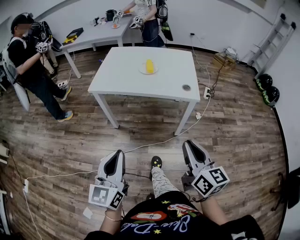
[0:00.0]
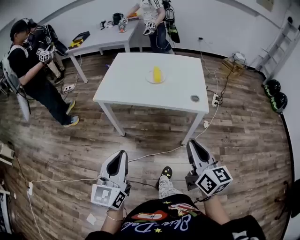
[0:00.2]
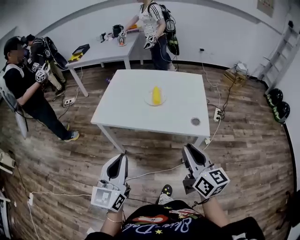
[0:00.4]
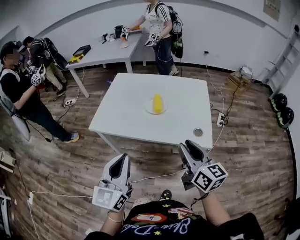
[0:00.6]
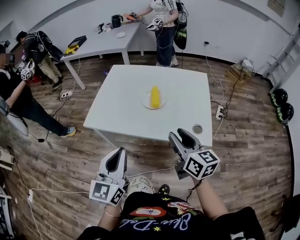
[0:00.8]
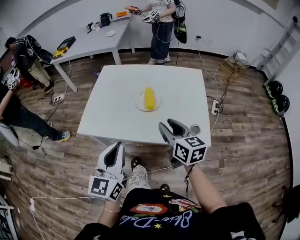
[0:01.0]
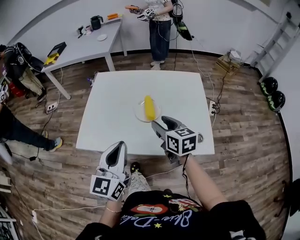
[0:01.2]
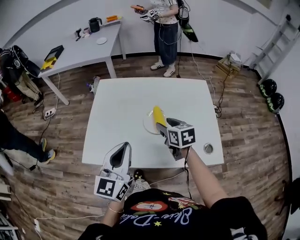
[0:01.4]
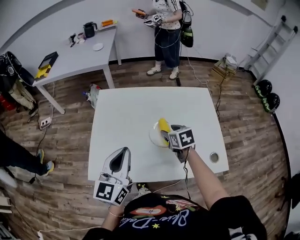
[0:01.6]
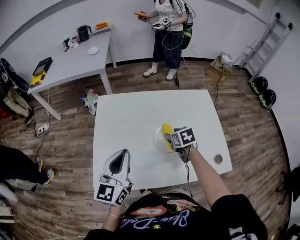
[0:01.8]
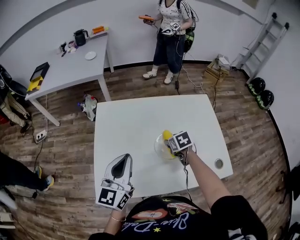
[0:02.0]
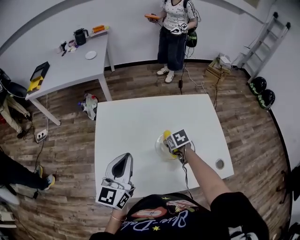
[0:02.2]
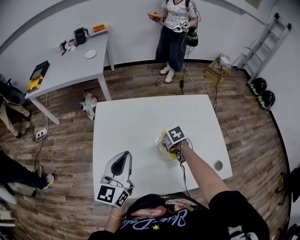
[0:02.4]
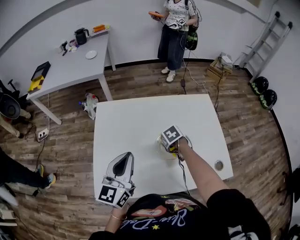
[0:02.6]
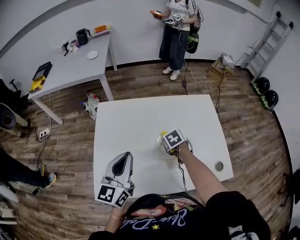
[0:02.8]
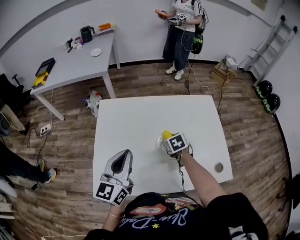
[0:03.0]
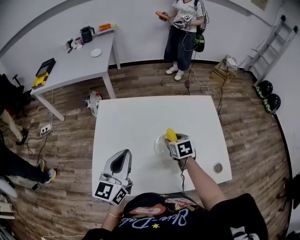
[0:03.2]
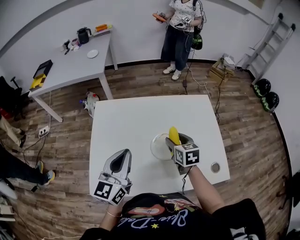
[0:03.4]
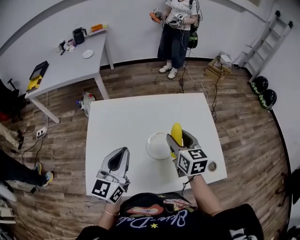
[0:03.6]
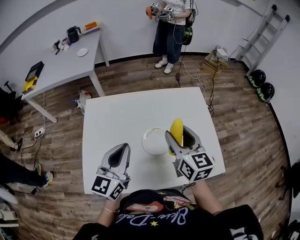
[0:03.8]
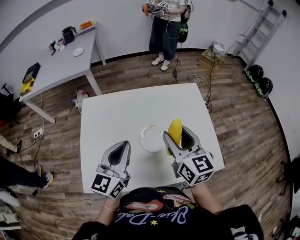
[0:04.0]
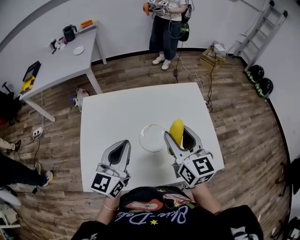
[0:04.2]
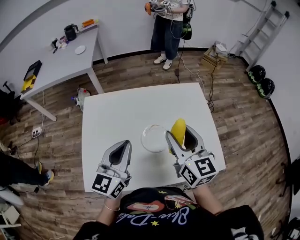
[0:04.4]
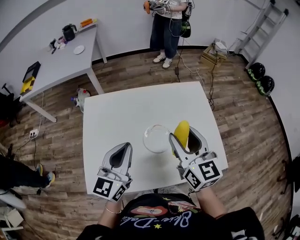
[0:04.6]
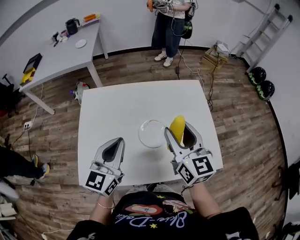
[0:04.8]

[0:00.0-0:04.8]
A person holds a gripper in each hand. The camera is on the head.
0:00.0 to 0:01.6: The pair of grippers is taken forward, approximately 60 cm. The right gripper tilts its fingers roughly 40 degrees downward, and opens up.
0:01.6 to 0:03.2: The left gripper shifts approximately 5 cm forward.
0:03.2 to 0:04.8: The left gripper goes roughly 5 cm to the right. The right gripper moves upward, approximately 20 cm, and angles its fingers upward, by approximately 40 degrees.

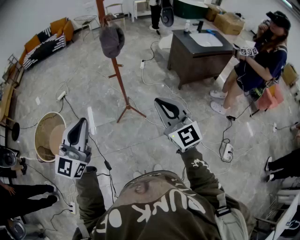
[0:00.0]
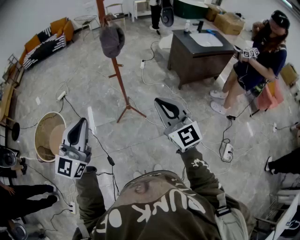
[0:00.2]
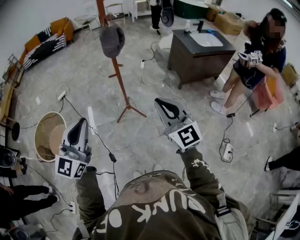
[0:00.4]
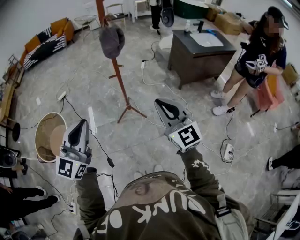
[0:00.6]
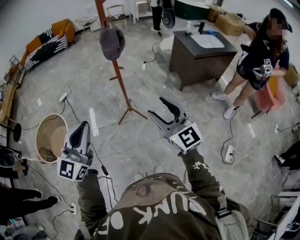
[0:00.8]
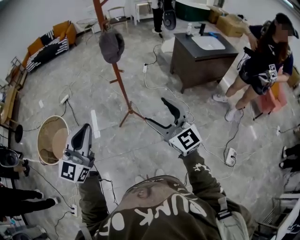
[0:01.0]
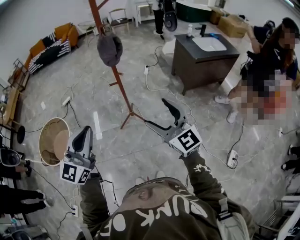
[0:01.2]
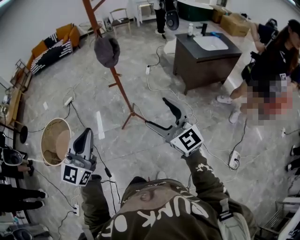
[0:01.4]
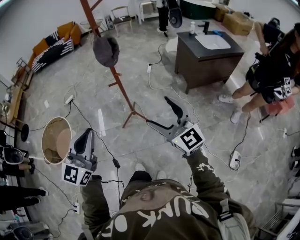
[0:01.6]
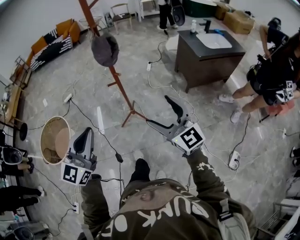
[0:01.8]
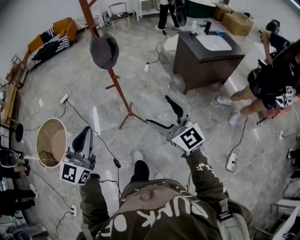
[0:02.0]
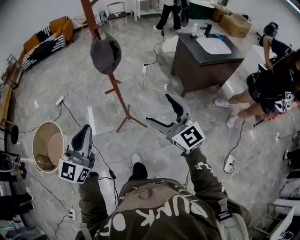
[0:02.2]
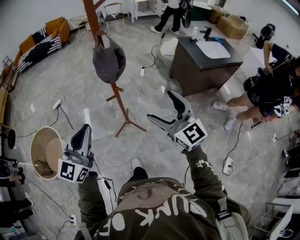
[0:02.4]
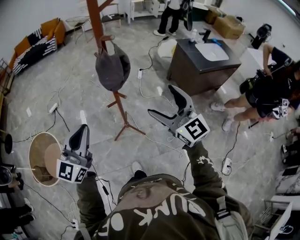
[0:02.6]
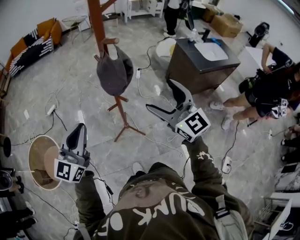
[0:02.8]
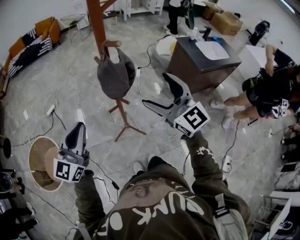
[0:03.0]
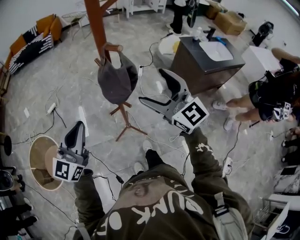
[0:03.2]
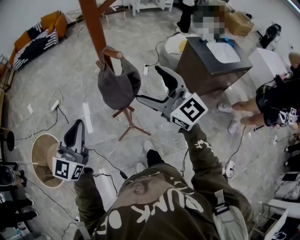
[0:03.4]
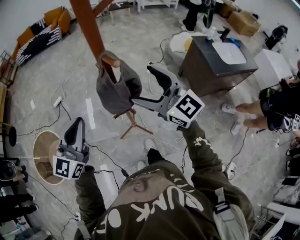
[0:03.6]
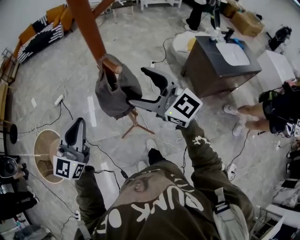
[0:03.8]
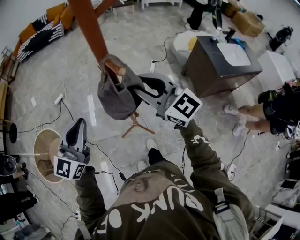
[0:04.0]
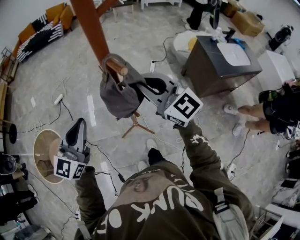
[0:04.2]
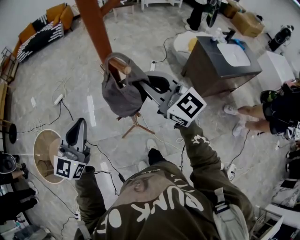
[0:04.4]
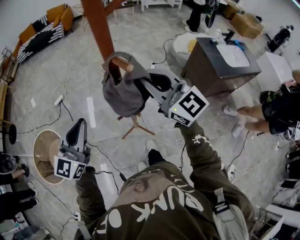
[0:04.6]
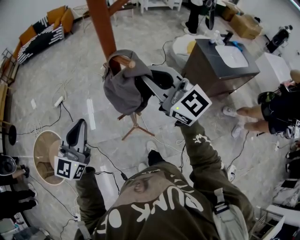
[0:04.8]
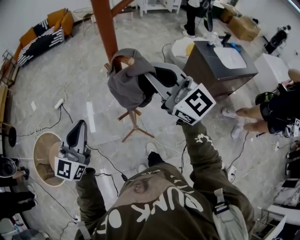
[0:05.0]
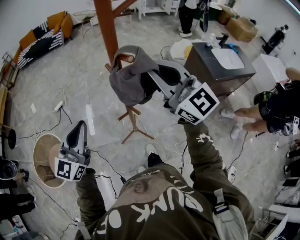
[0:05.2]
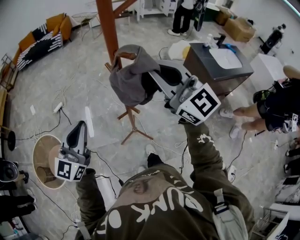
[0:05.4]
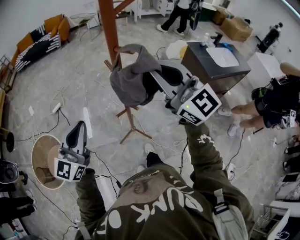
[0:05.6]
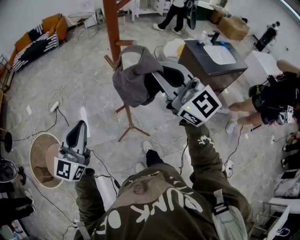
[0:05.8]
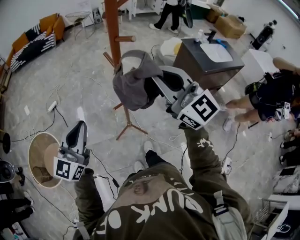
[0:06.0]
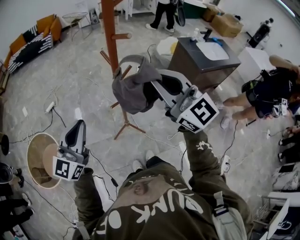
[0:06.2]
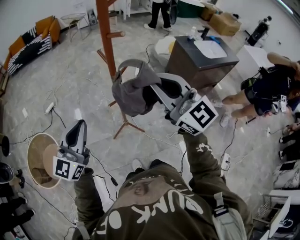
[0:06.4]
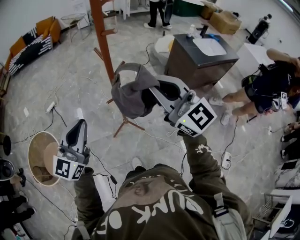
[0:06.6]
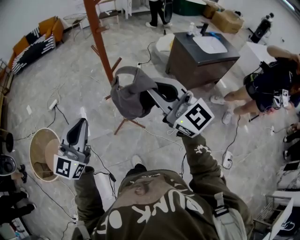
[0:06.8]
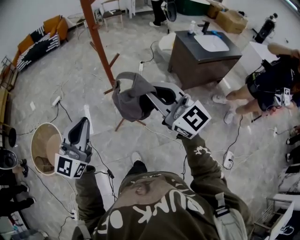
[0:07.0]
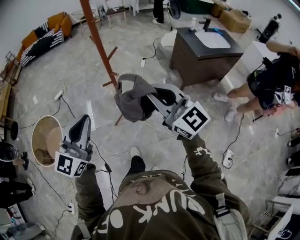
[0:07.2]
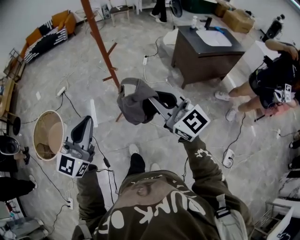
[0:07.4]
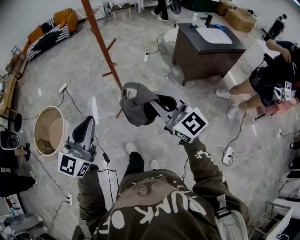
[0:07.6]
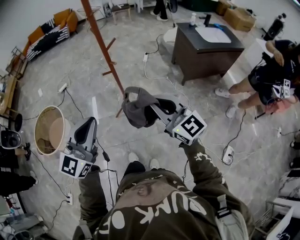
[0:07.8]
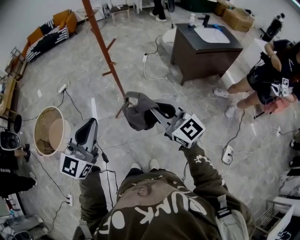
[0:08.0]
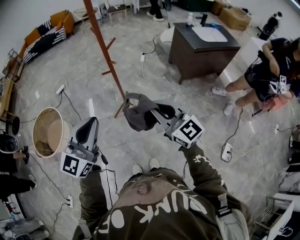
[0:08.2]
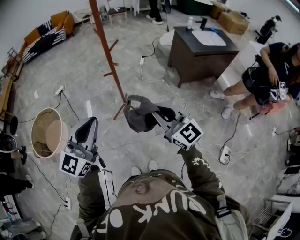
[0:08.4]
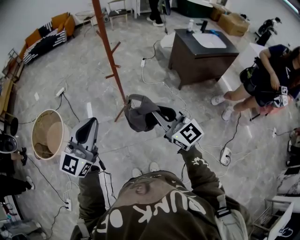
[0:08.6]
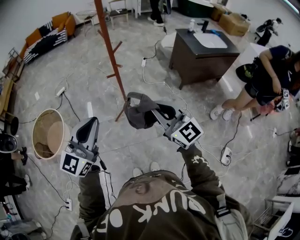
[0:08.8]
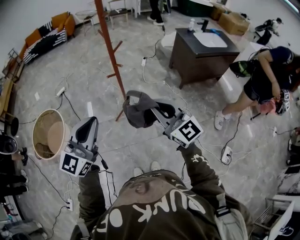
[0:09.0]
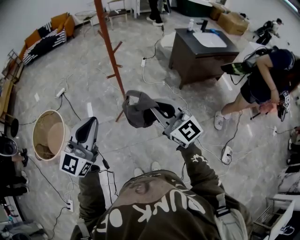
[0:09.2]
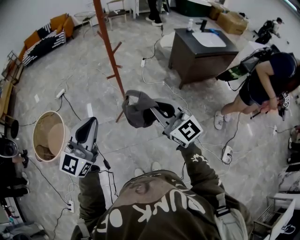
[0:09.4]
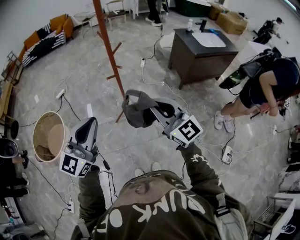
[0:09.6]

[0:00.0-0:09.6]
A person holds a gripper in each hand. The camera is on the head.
0:00.0 to 0:01.6: Both grippers travel together to the right, about 5 cm. The right gripper opens up.
0:01.6 to 0:03.2: Both grippers travel together forward, some 35 cm.
0:03.2 to 0:04.8: The right gripper travels forward by roughly 10 cm, and closes its fingers. The left gripper shifts roughly 5 cm forward.
0:04.8 to 0:06.4: The two grippers go some 15 cm backward.
0:06.4 to 0:08.0: The left gripper shifts some 30 cm backward and to the right; the right gripper is displaced backward and downward by roughly 30 cm.
0:08.0 to 0:09.6: The left gripper heads to the left, covering approximately 5 cm. Meanwhile the right gripper ends up some 5 cm from where it was.

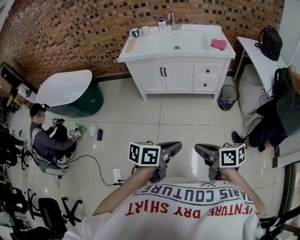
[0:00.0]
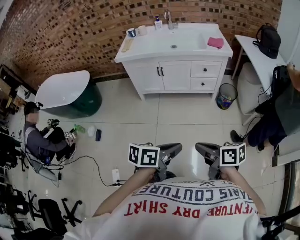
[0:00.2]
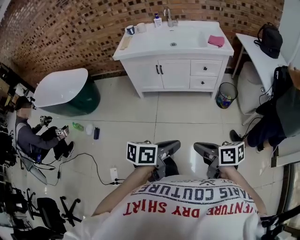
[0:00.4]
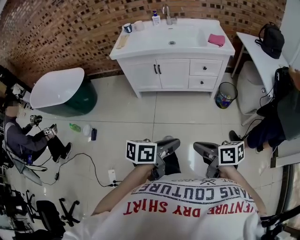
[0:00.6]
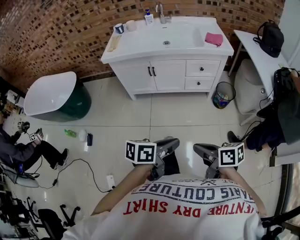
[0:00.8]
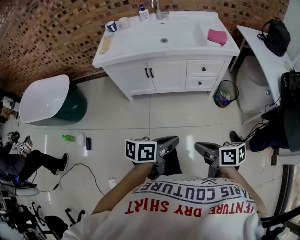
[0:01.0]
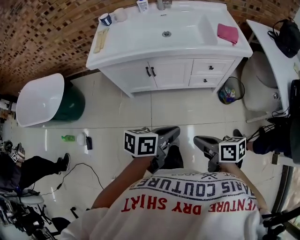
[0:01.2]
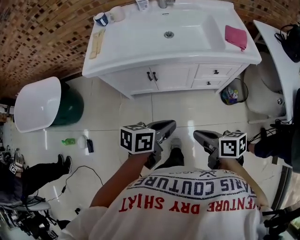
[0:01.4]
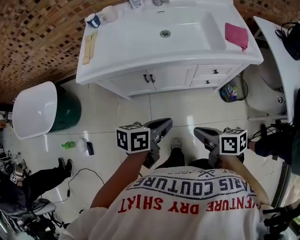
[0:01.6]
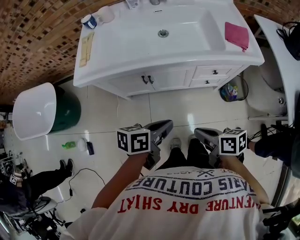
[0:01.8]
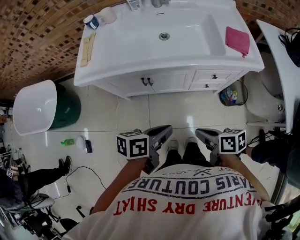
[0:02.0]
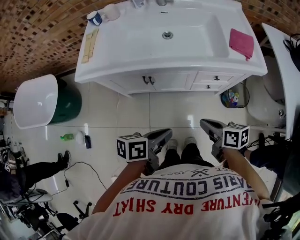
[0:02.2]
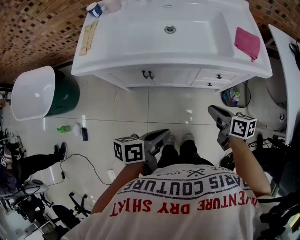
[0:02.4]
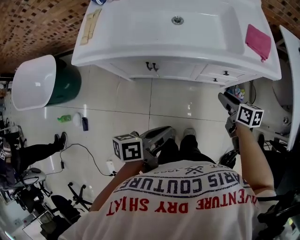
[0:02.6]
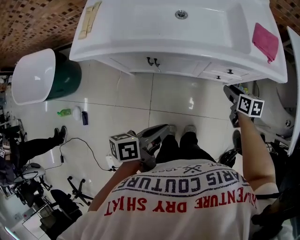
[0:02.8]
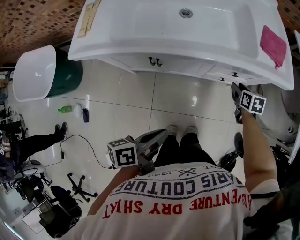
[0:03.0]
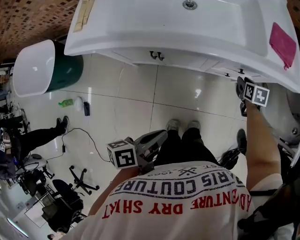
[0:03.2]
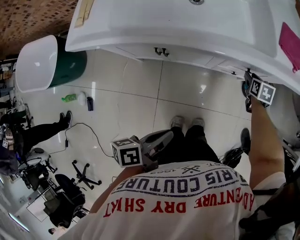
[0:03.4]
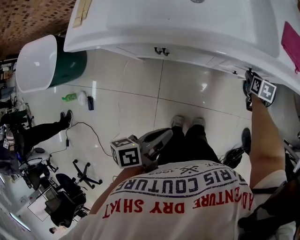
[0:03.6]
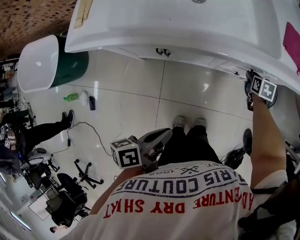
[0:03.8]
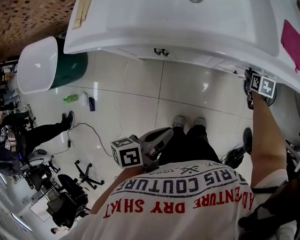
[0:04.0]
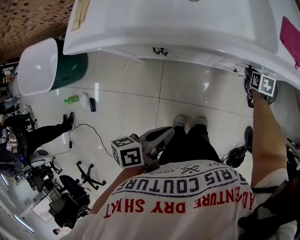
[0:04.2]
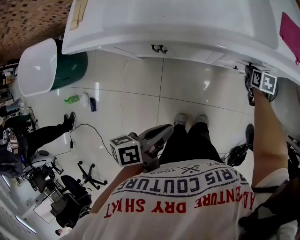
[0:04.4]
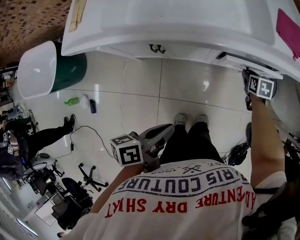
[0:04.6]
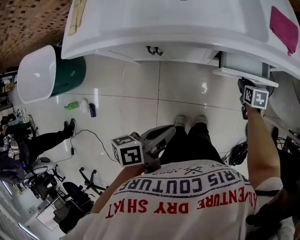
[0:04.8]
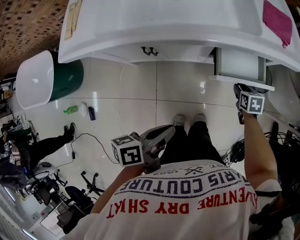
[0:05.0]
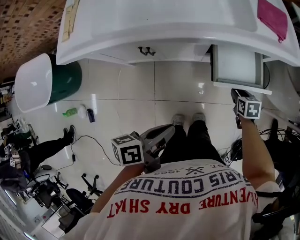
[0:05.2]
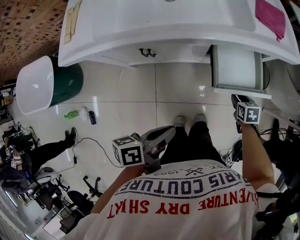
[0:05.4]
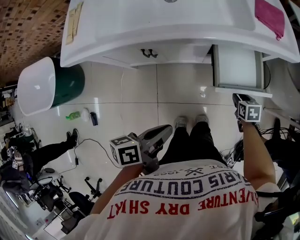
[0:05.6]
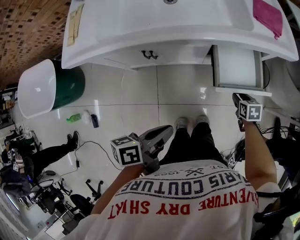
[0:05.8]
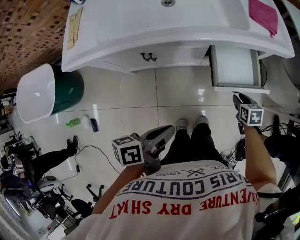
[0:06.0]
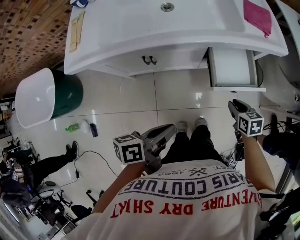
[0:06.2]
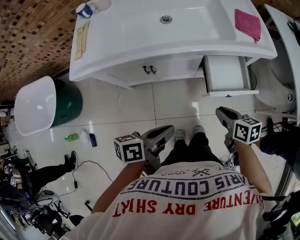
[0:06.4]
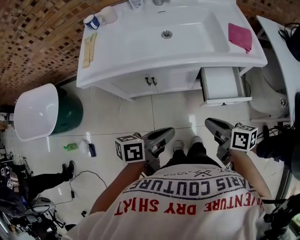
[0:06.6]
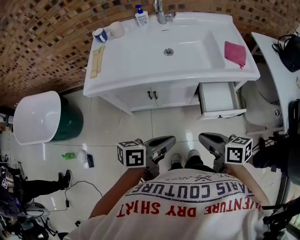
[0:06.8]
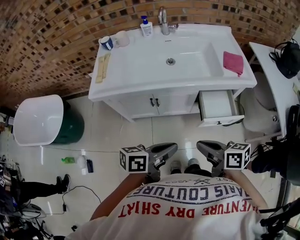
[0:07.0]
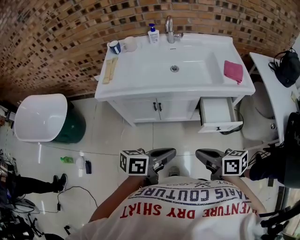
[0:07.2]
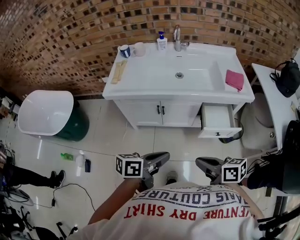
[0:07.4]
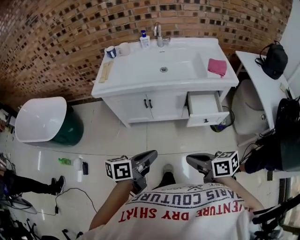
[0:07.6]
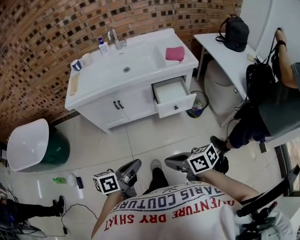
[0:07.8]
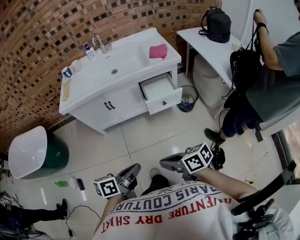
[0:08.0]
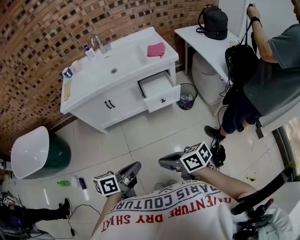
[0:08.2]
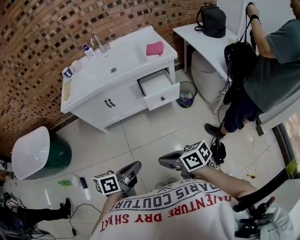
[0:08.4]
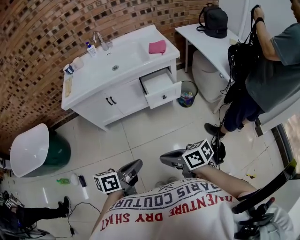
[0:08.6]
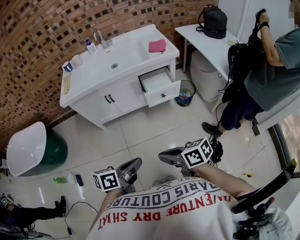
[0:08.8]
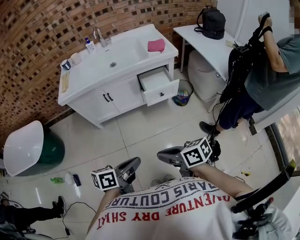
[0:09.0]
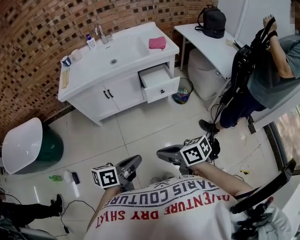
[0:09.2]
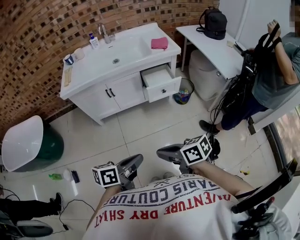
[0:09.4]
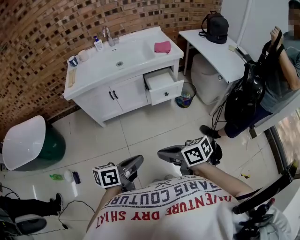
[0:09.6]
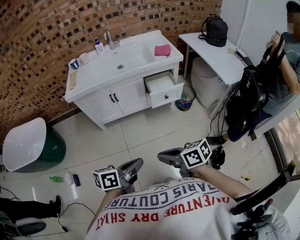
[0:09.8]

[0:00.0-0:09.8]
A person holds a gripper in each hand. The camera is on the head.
0:00.0 to 0:01.4: The pair of grippers is taken forward, roughly 50 cm.
0:01.4 to 0:02.8: The left gripper heads downward and forward, covering some 10 cm, and turns by roughly 30 degrees, while the right gripper moves forward, downward and to the right, about 35 cm, rotates roughly 30 degrees, and opens up.
0:02.8 to 0:04.2: The left gripper heads downward, covering some 5 cm, while the right gripper travels downward and forward by about 15 cm, and changes its angle by about 20 degrees.
0:04.2 to 0:05.6: The right gripper travels backward by some 20 cm.
0:05.6 to 0:07.0: The right gripper goes about 50 cm upward, to the left and backward, points its fingers approximately 40 degrees further upward, and closes its fingers. Meanwhile the left gripper heads upward, covering some 15 cm, and changes its angle by approximately 30 degrees.
0:07.0 to 0:08.4: The grippers both shift backward by some 35 cm.
0:08.4 to 0:09.8: The right gripper travels to the left by approximately 10 cm; the left gripper goes approximately 10 cm to the left and backward.
